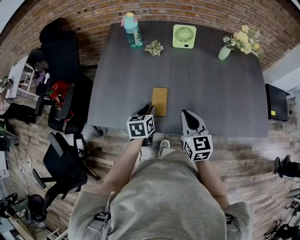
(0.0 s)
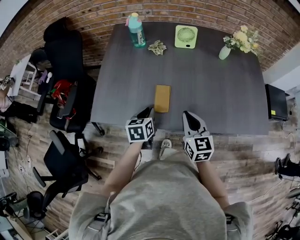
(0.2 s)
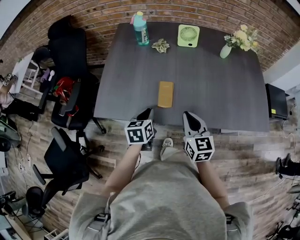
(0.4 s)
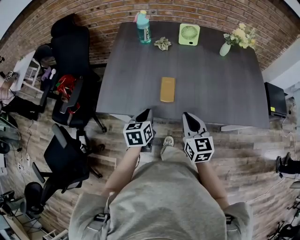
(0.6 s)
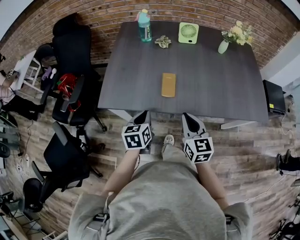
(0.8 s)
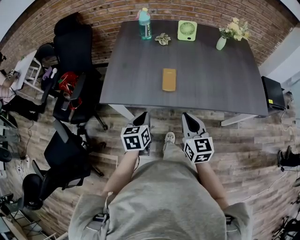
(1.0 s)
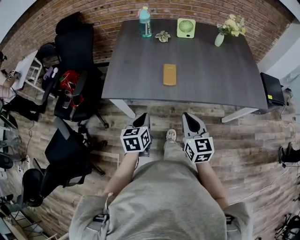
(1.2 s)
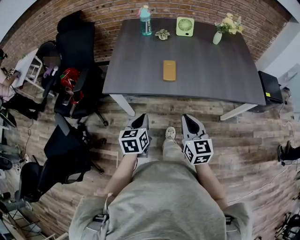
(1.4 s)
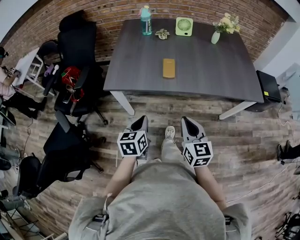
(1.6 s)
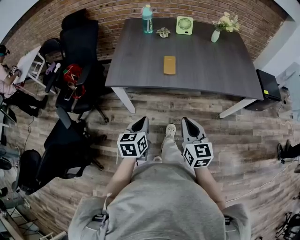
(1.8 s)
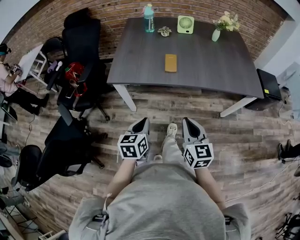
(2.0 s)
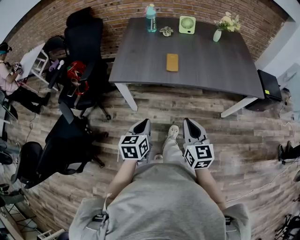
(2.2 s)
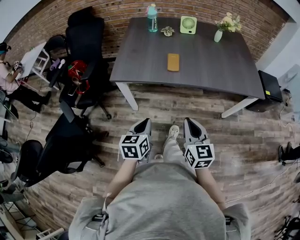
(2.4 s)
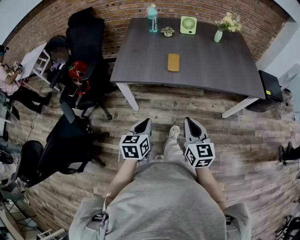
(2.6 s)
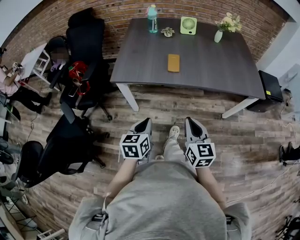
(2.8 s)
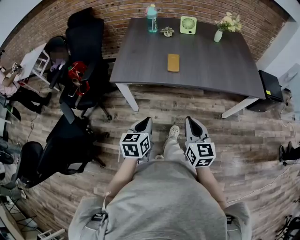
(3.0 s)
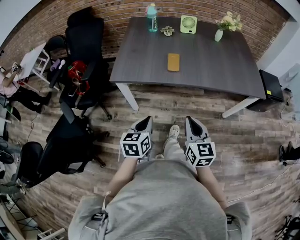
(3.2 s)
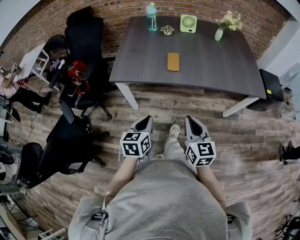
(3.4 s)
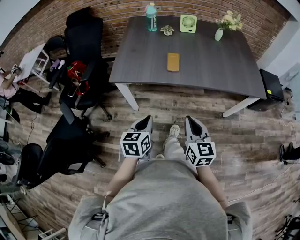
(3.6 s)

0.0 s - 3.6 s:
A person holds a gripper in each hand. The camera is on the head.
0.0 s - 1.8 s: The grippers both shift backward by approximately 35 cm. The left gripper closes.
1.8 s - 3.6 s: There are only small adjustments of the grippers.

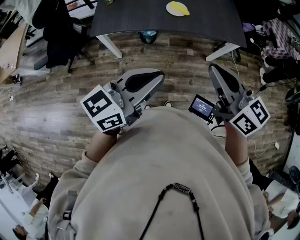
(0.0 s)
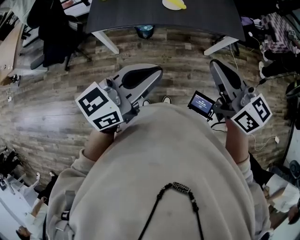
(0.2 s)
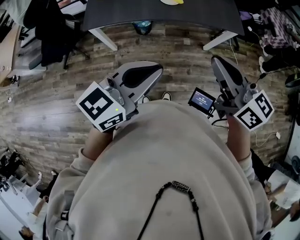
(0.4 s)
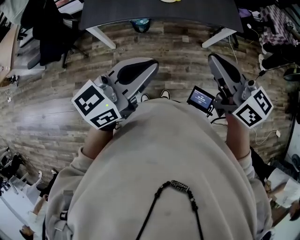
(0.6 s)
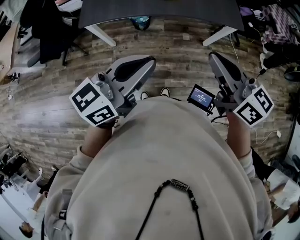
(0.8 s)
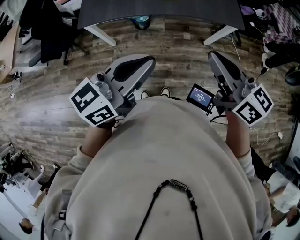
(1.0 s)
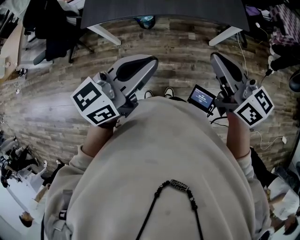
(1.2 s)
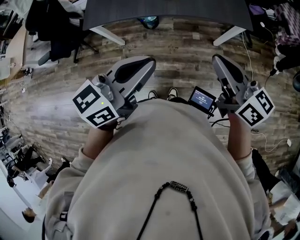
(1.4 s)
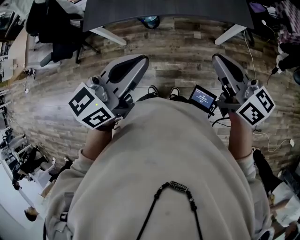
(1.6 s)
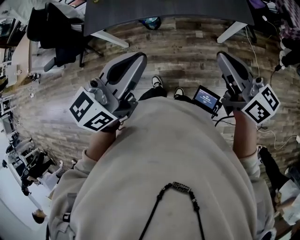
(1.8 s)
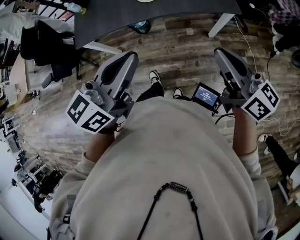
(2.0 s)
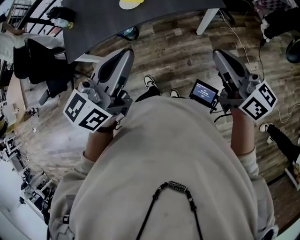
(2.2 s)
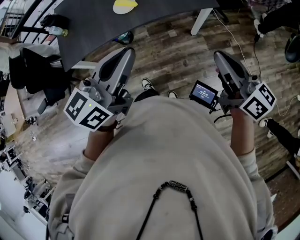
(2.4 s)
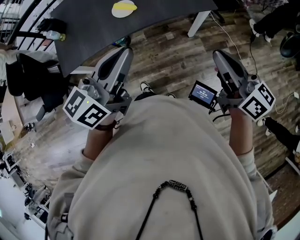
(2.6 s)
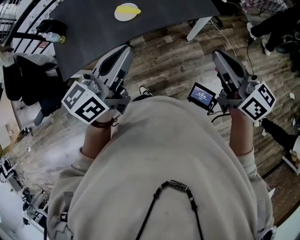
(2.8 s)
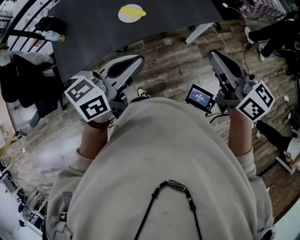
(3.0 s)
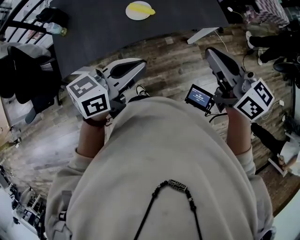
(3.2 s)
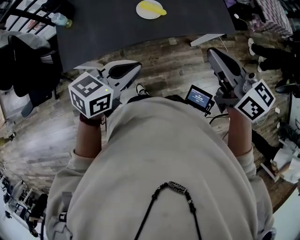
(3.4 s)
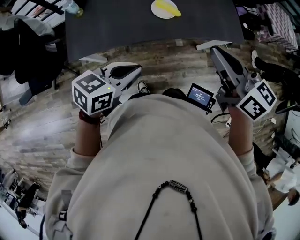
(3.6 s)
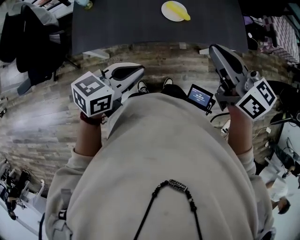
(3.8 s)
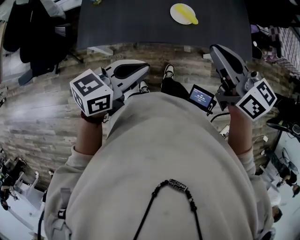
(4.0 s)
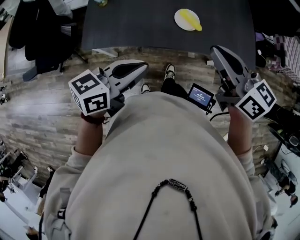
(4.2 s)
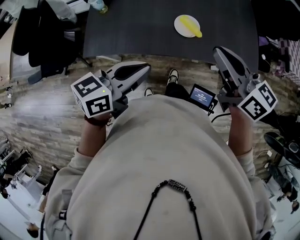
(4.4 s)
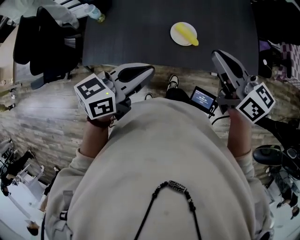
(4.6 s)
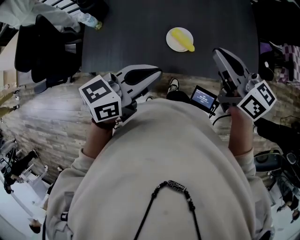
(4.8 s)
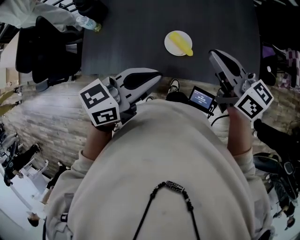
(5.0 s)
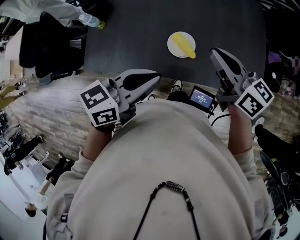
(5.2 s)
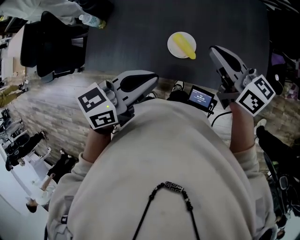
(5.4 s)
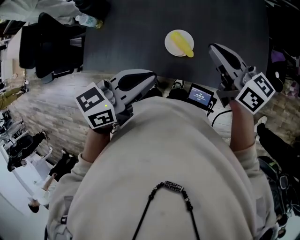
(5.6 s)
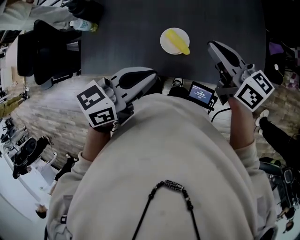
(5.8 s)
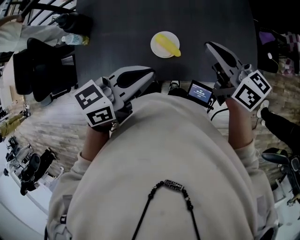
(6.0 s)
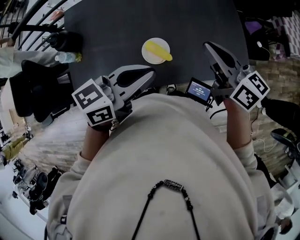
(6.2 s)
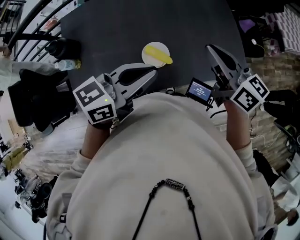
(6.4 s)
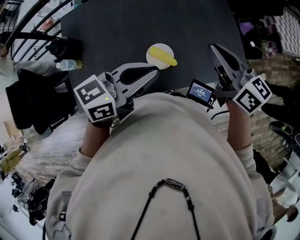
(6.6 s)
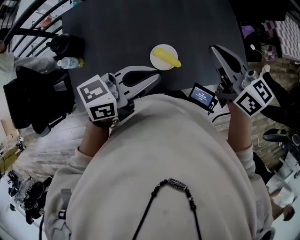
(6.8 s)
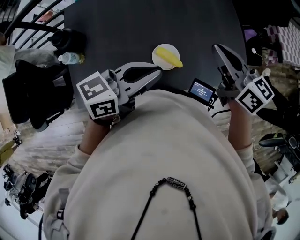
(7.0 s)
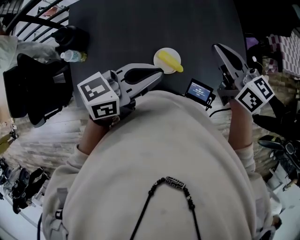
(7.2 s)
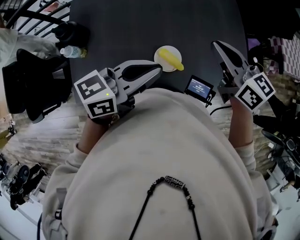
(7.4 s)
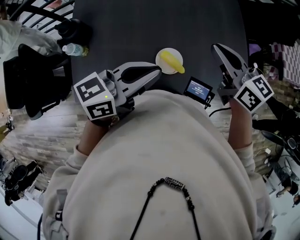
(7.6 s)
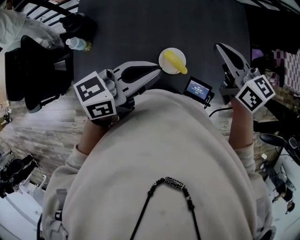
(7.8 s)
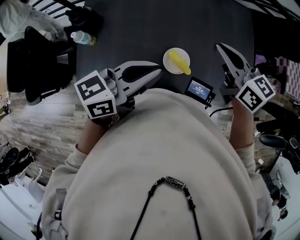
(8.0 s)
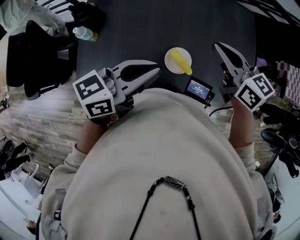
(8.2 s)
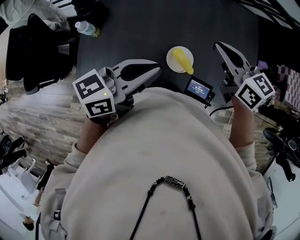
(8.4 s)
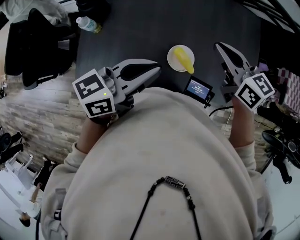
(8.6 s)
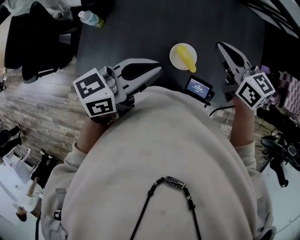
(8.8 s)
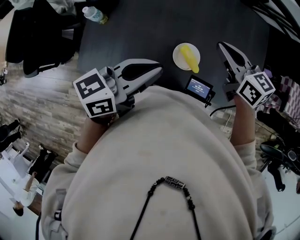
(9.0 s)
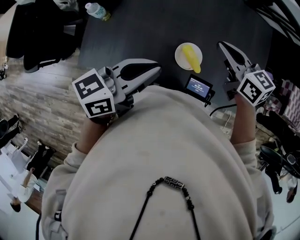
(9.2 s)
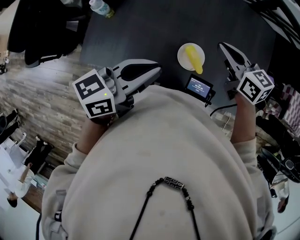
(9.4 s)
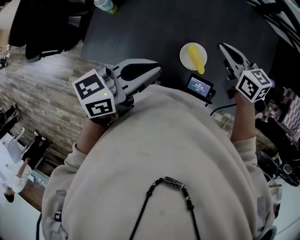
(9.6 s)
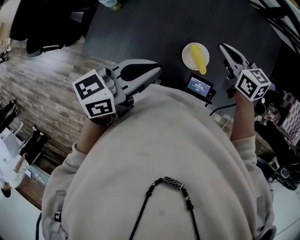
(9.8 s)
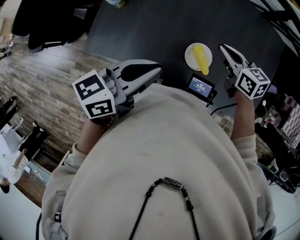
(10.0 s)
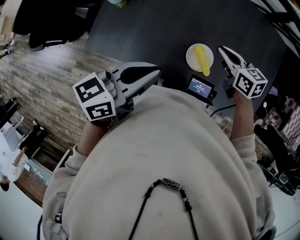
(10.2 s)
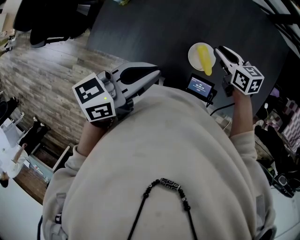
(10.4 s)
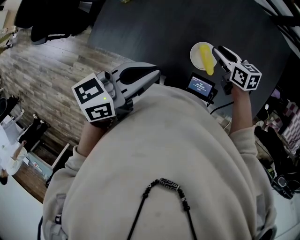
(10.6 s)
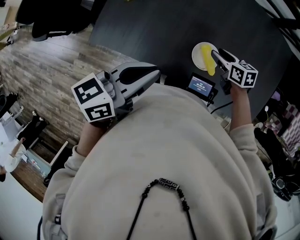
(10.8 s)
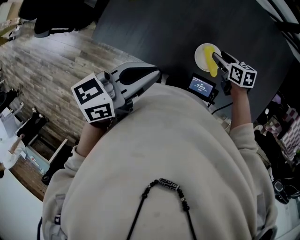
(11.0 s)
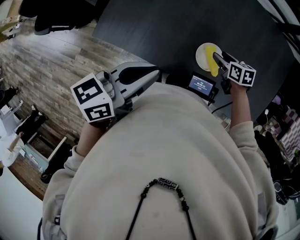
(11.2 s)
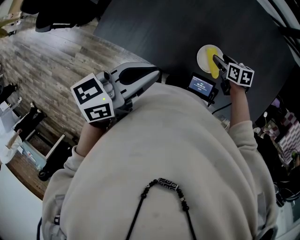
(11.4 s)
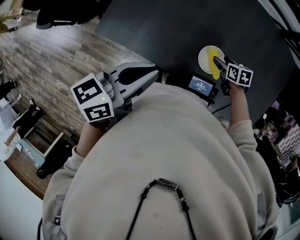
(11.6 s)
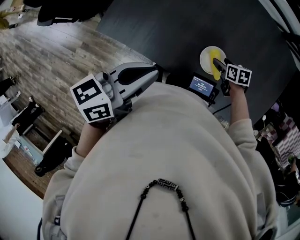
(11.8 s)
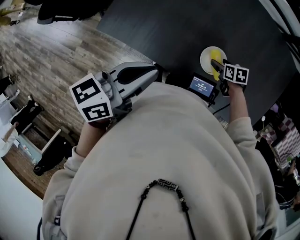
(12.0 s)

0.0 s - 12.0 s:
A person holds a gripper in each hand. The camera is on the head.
0.0 s - 1.6 s: The right gripper shifts about 10 cm to the right and downward. Meanwhile the left gripper shifts by approximately 5 cm.
1.6 s - 3.0 s: The left gripper moves forward and downward, approximately 10 cm, and swivels roughly 20 degrees.
3.0 s - 4.4 s: The left gripper shifts roughly 15 cm backward and upward. Meanwhile the right gripper shifts roughly 5 cm upward, and rotates some 20 degrees.
4.4 s - 6.0 s: The right gripper ends up about 5 cm from where it was, while the left gripper moves to the right, about 5 cm.
6.0 s - 7.6 s: The right gripper changes place by roughly 5 cm.
7.6 s - 9.0 s: The right gripper travels downward by about 5 cm.
9.0 s - 10.4 s: The right gripper is displaced downward by roughly 15 cm.
10.4 s - 12.0 s: The right gripper is displaced downward by approximately 15 cm, changes its angle by approximately 30 degrees, and opens its fingers.

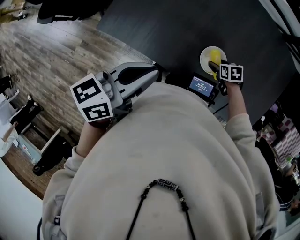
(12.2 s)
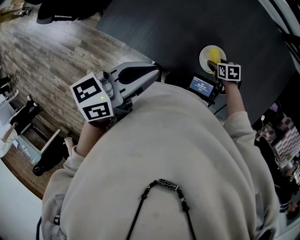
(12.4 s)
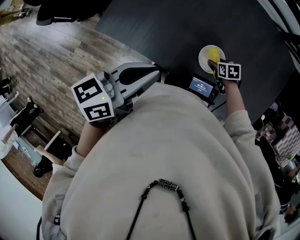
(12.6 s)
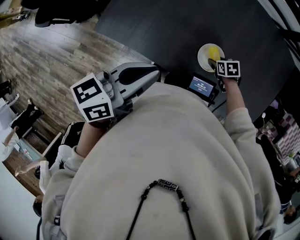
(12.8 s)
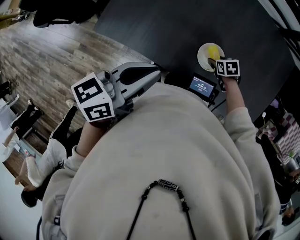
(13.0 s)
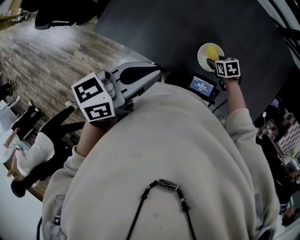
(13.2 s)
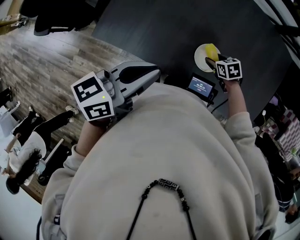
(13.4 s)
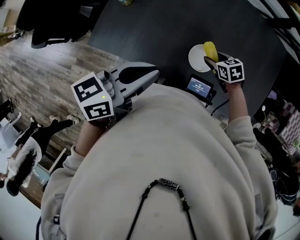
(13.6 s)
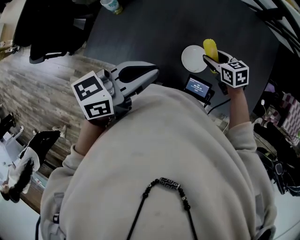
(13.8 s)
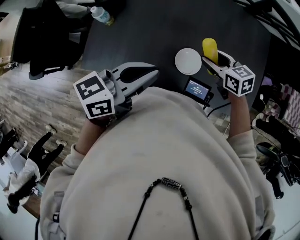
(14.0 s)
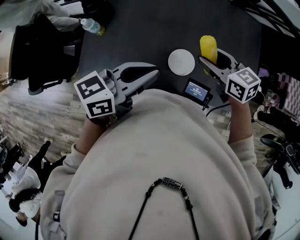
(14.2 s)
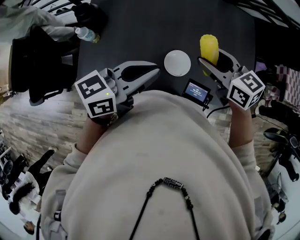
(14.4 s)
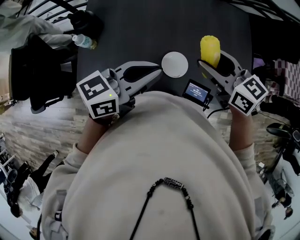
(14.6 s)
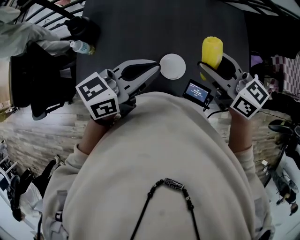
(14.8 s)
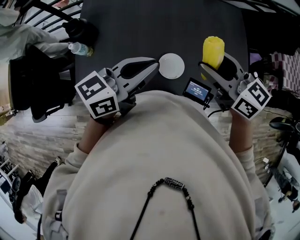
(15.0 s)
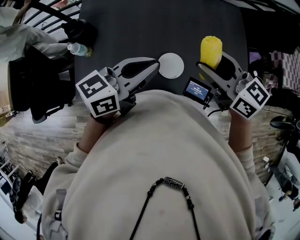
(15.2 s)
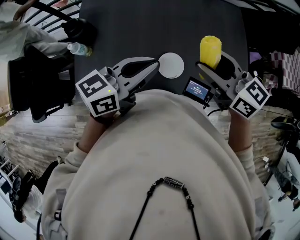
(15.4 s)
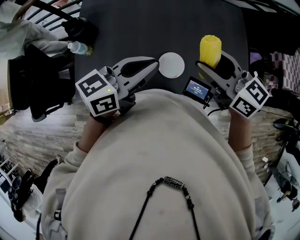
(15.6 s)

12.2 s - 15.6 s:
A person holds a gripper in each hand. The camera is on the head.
12.2 s - 13.8 s: The right gripper moves upward, some 15 cm.
13.8 s - 15.6 s: The right gripper travels upward by some 25 cm, and tilts its fingers some 40 degrees upward; the left gripper travels forward by roughly 10 cm.

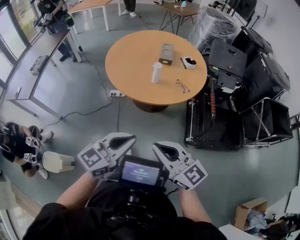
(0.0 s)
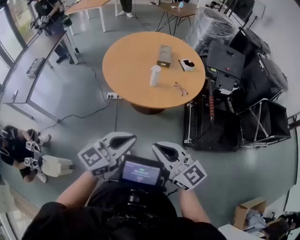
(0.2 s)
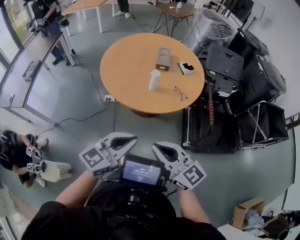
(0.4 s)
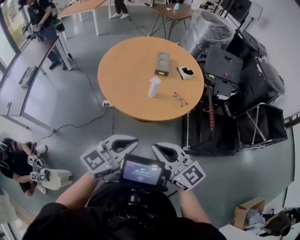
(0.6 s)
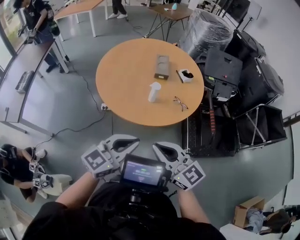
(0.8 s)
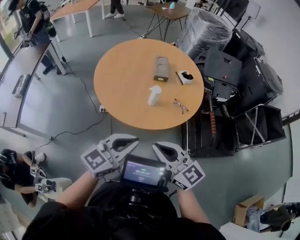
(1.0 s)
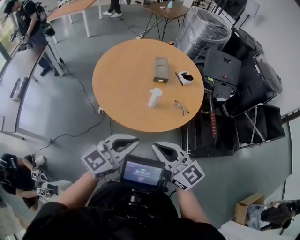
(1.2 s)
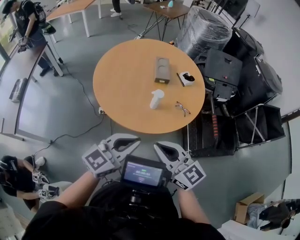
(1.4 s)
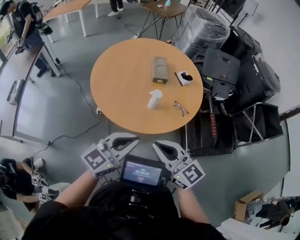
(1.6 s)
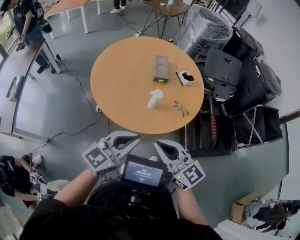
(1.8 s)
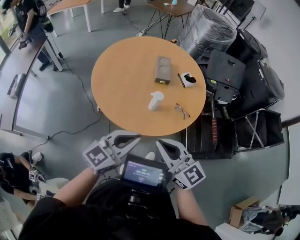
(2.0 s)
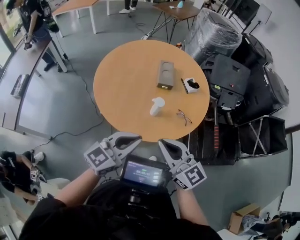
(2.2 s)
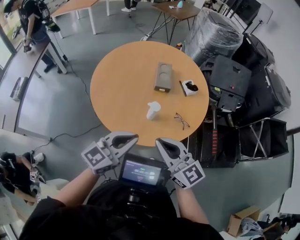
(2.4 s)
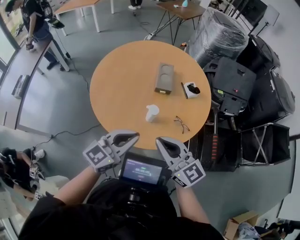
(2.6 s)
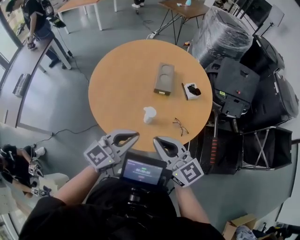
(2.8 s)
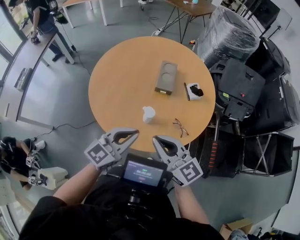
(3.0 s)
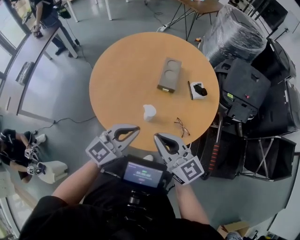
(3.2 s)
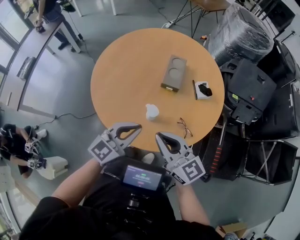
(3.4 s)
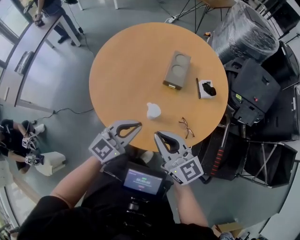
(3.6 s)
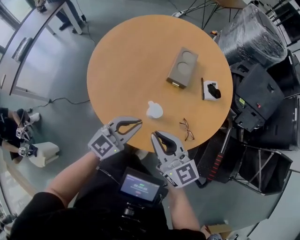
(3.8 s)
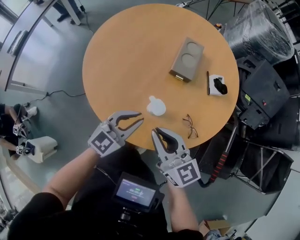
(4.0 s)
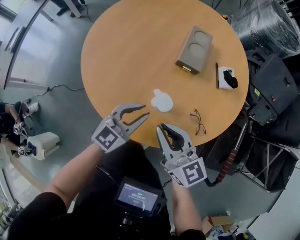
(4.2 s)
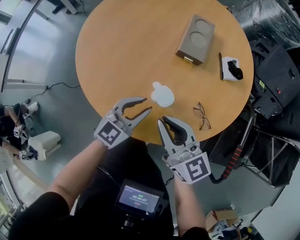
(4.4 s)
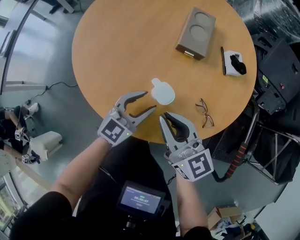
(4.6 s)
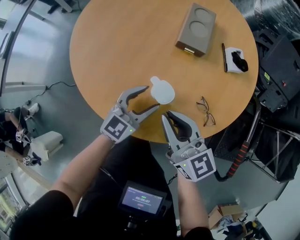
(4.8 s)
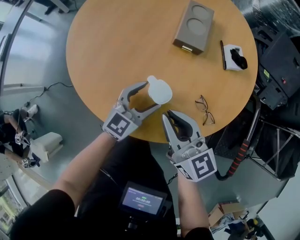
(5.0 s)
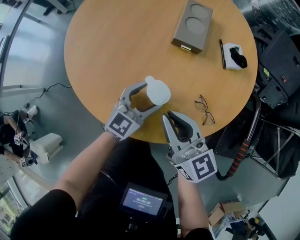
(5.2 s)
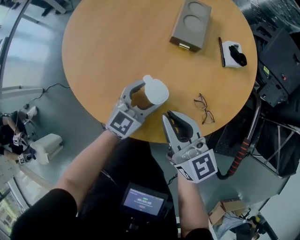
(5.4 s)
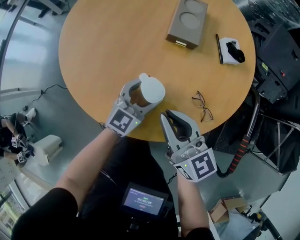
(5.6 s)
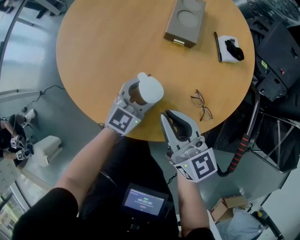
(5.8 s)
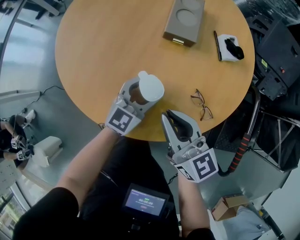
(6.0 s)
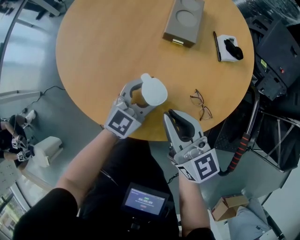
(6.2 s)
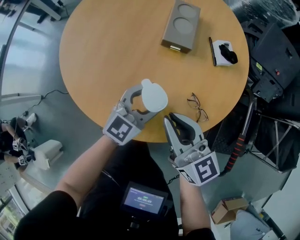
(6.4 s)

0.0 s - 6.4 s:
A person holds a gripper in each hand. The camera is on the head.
0.0 s - 1.6 s: Both grippers move forward and to the left, about 35 cm.
1.6 s - 3.2 s: The two grippers go about 25 cm forward and to the right.
3.2 s - 4.8 s: The two grippers go some 30 cm downward and forward. The left gripper opens.
4.8 s - 6.4 s: The left gripper shifts approximately 5 cm to the right.
